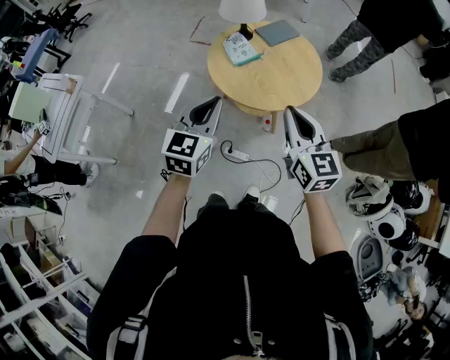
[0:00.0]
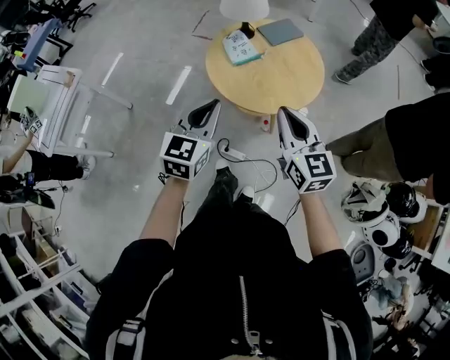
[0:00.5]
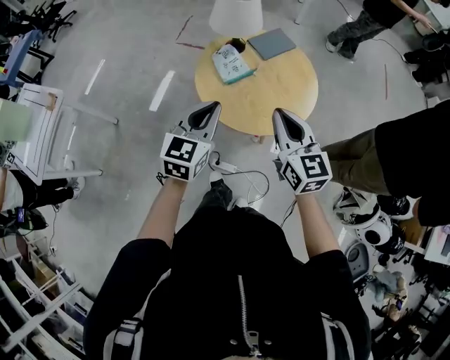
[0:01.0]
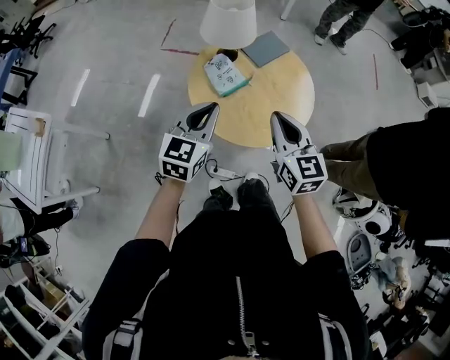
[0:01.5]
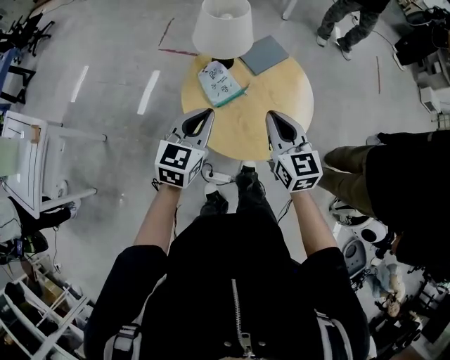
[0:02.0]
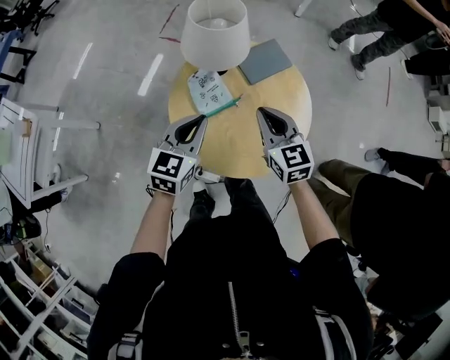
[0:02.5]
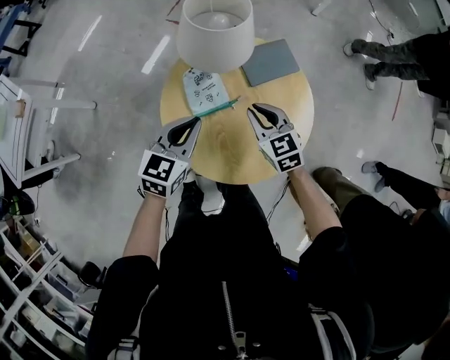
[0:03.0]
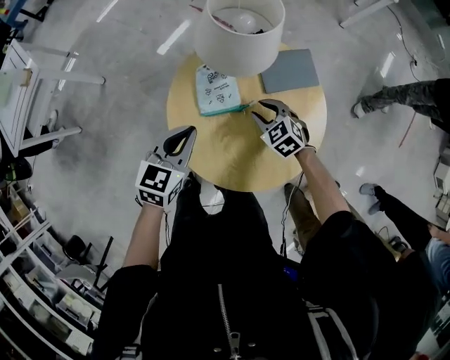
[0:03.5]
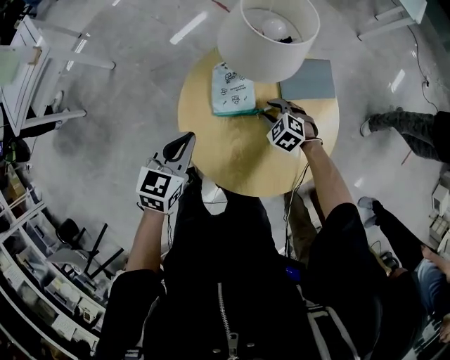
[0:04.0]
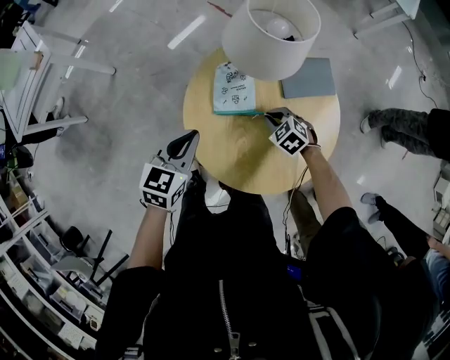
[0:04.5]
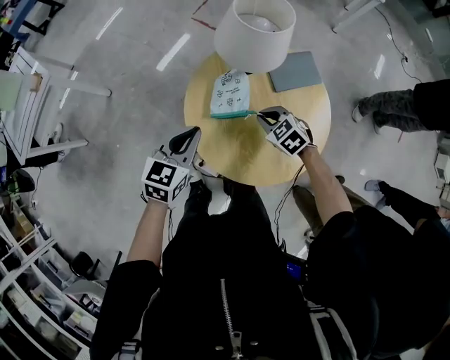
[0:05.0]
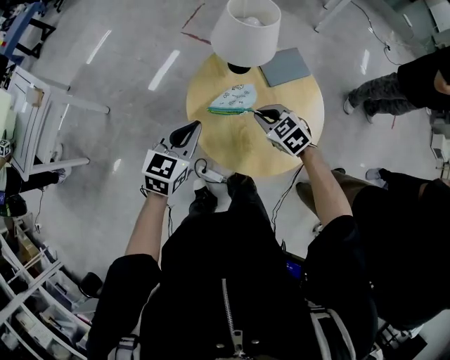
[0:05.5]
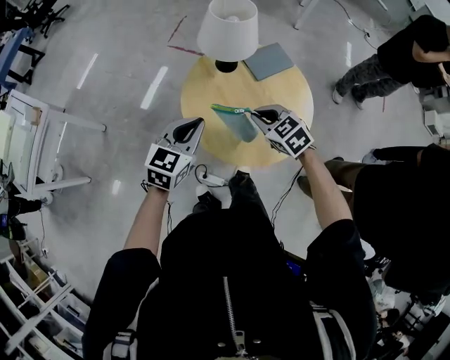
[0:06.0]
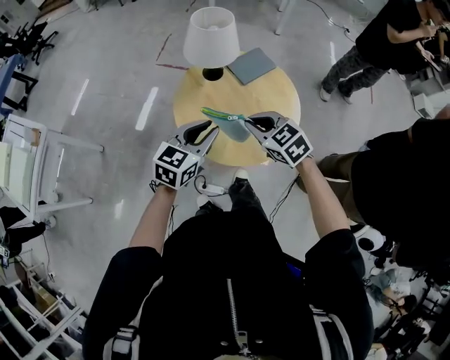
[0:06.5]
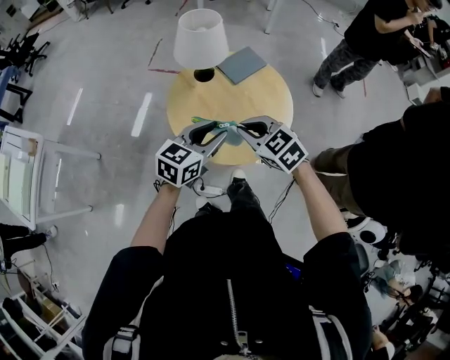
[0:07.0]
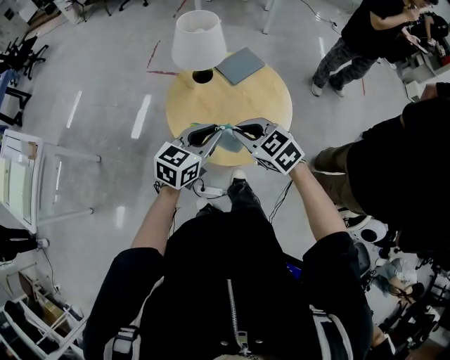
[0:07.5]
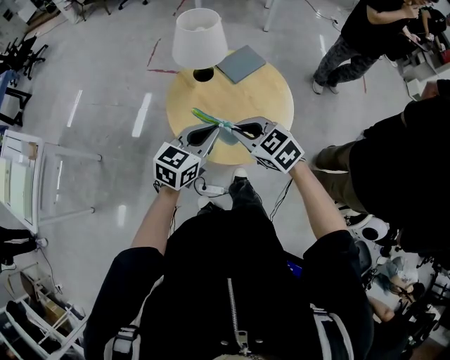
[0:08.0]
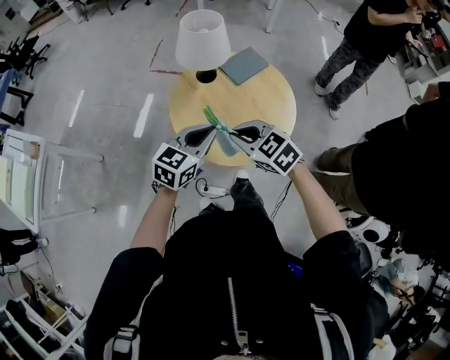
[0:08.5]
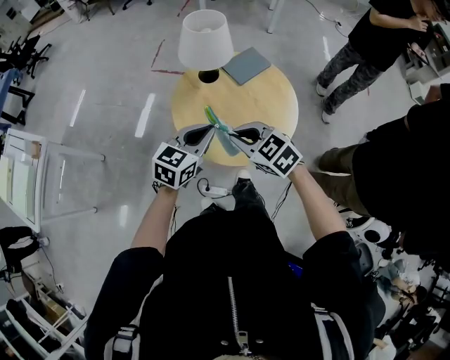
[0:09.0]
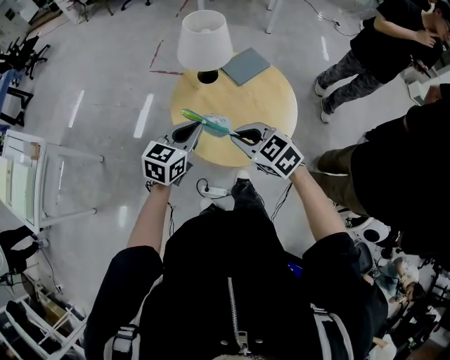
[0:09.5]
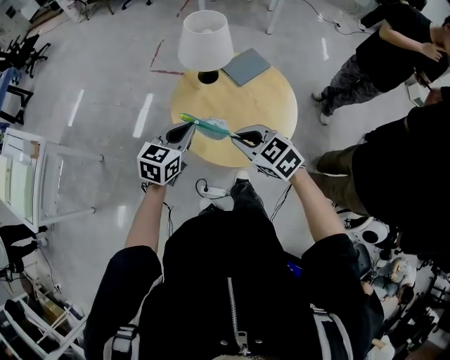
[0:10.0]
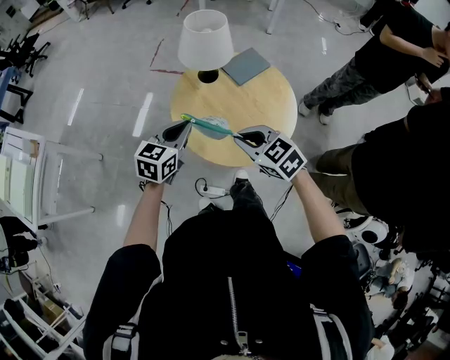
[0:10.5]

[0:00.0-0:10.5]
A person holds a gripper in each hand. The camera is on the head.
0:00.0 to 0:02.0: Both grippers move forward, roughly 25 cm.
0:02.0 to 0:04.0: The right gripper goes approximately 35 cm downward, angles its fingers downward, by about 50 degrees, and opens up, while the left gripper goes approximately 15 cm downward, and swivels approximately 30 degrees.
0:04.0 to 0:06.5: The left gripper heads upward, covering some 10 cm, turns by roughly 40 degrees, and opens up. Meanwhile the right gripper heads upward, covering some 30 cm, turns by some 40 degrees, and closes its fingers.
0:06.5 to 0:08.5: The right gripper shifts by some 5 cm. Meanwhile the left gripper closes its fingers.
0:08.5 to 0:10.5: The left gripper heads to the left, covering about 10 cm.

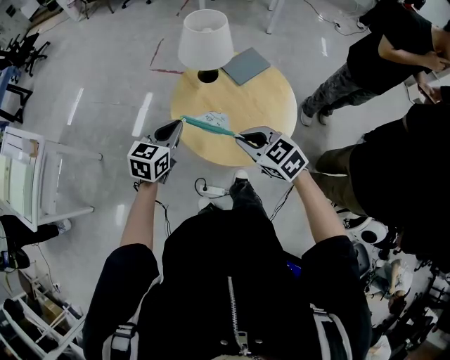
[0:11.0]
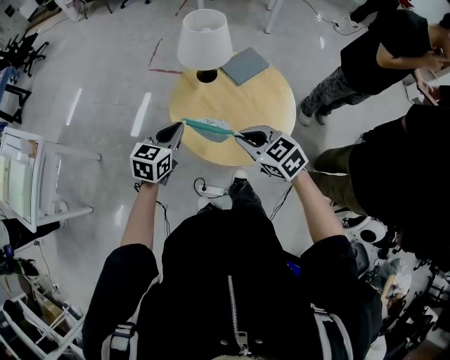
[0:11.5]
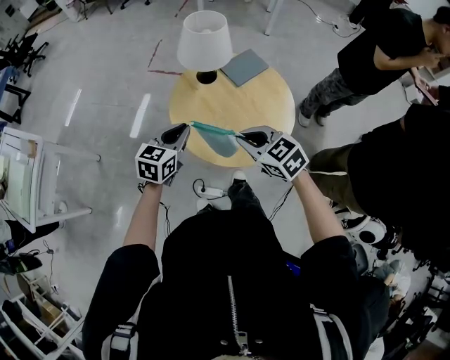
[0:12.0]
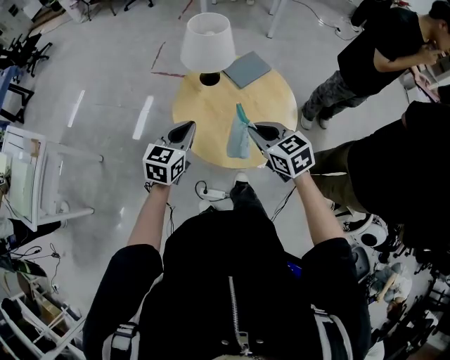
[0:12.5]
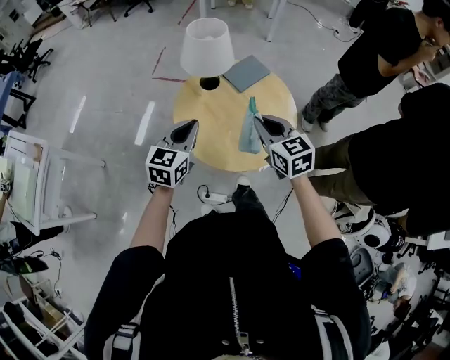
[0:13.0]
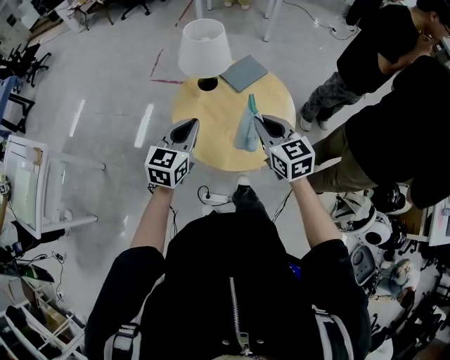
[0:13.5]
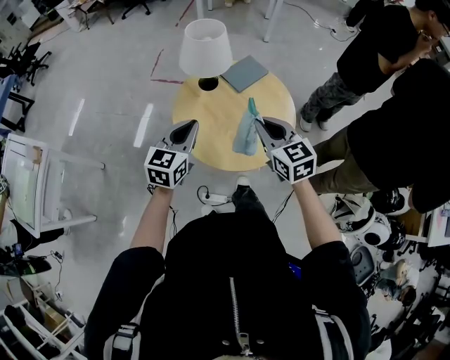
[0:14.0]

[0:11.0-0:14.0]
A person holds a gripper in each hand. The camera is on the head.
0:11.0 to 0:12.5: The grippers move only a little.
0:12.5 to 0:14.0: The right gripper changes place by approximately 5 cm.

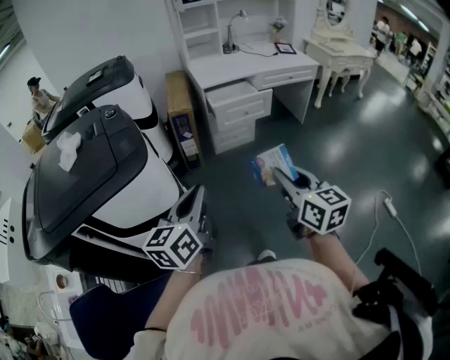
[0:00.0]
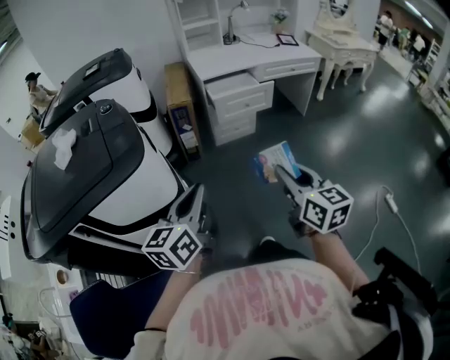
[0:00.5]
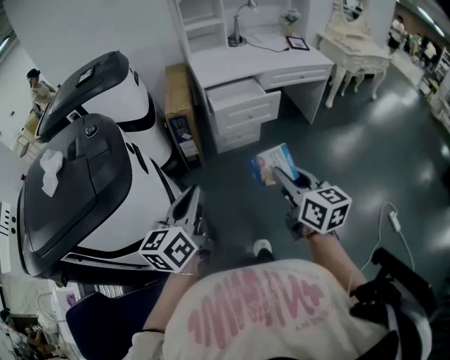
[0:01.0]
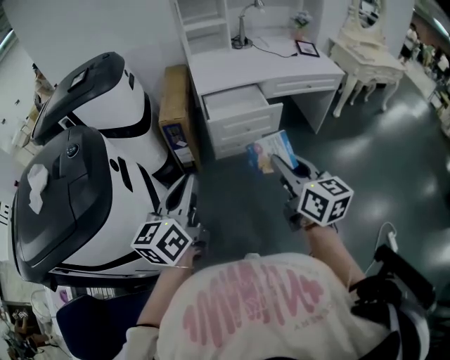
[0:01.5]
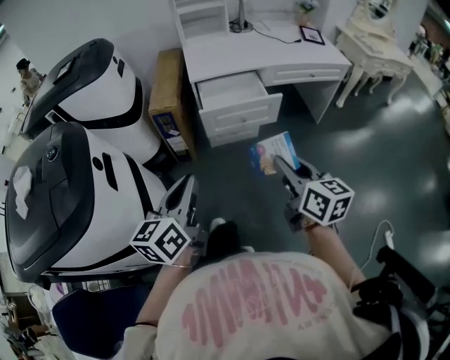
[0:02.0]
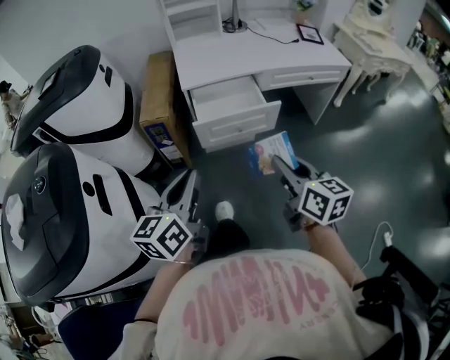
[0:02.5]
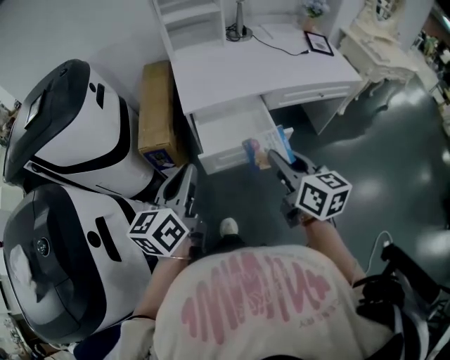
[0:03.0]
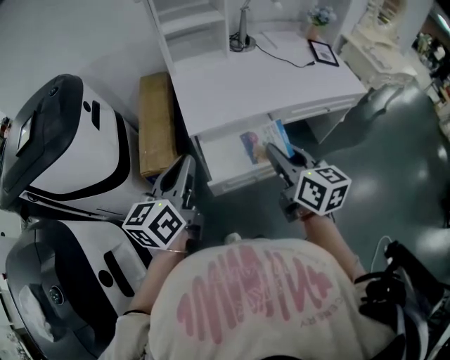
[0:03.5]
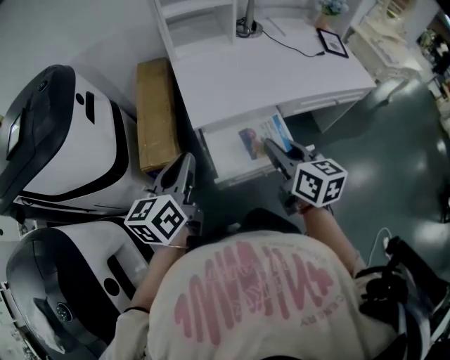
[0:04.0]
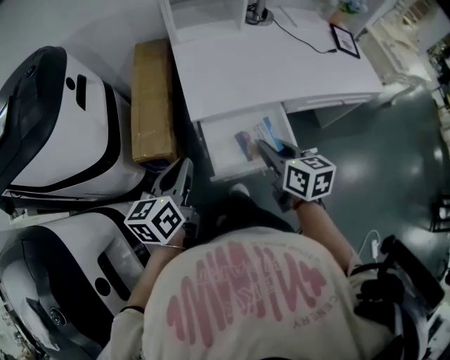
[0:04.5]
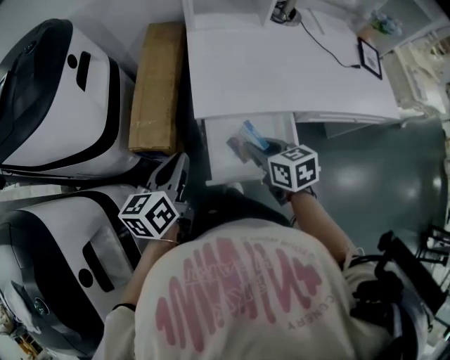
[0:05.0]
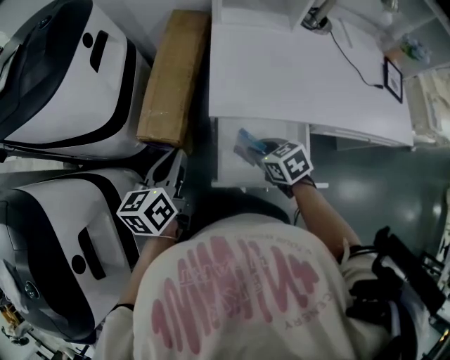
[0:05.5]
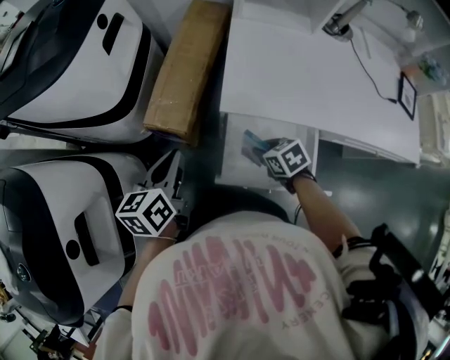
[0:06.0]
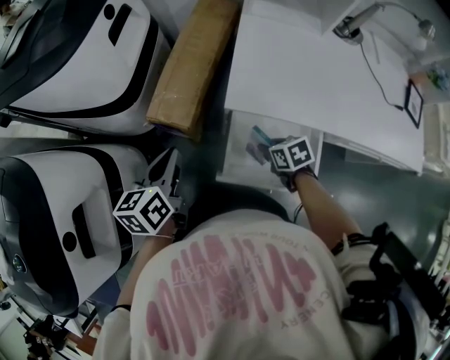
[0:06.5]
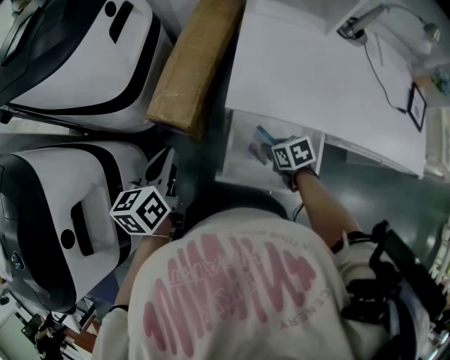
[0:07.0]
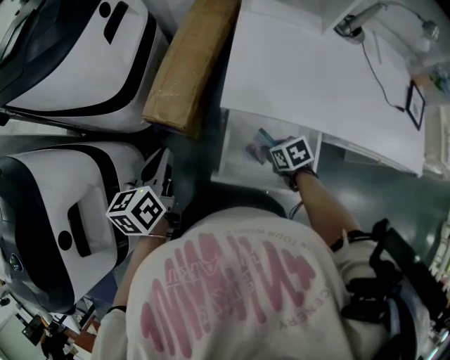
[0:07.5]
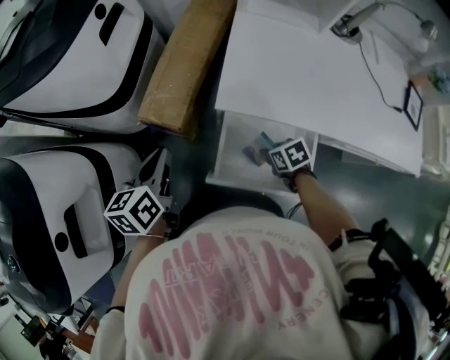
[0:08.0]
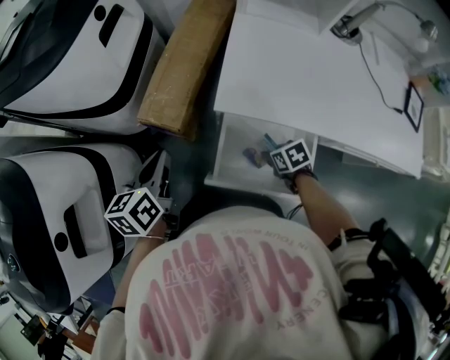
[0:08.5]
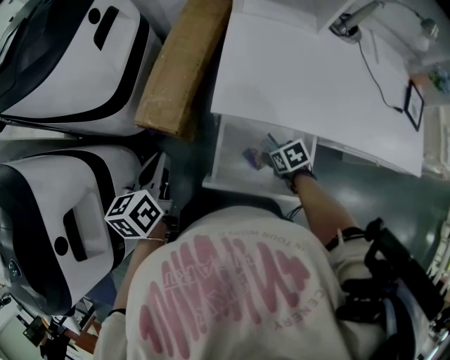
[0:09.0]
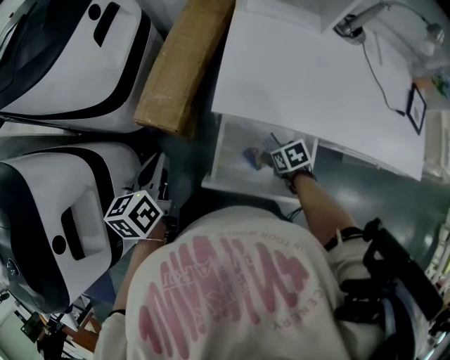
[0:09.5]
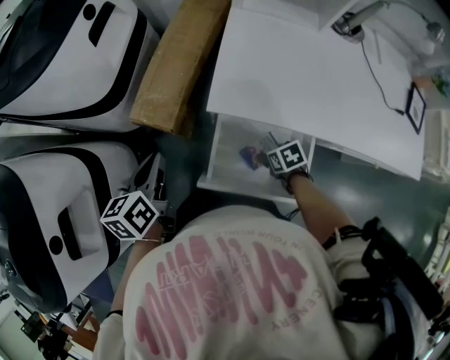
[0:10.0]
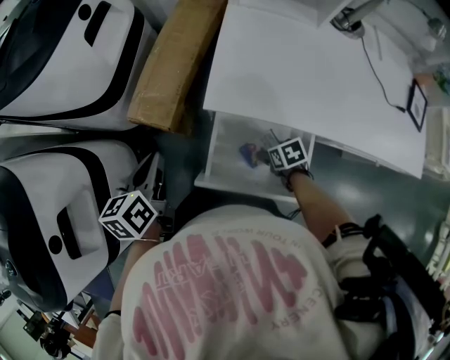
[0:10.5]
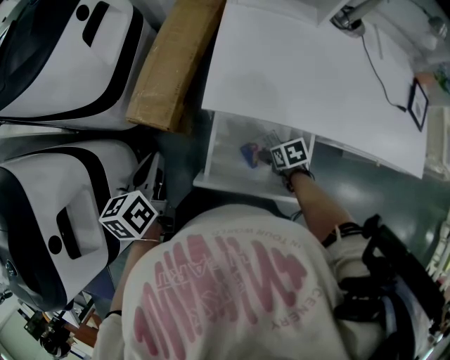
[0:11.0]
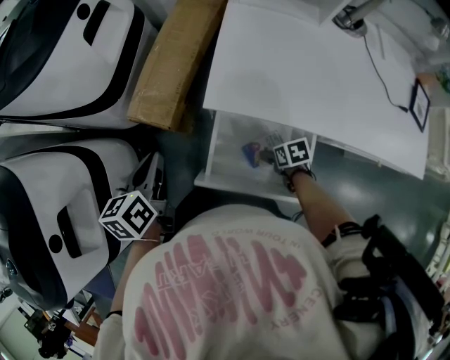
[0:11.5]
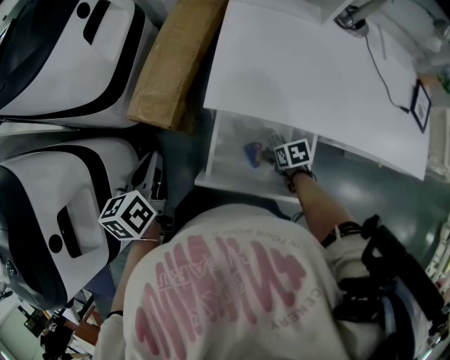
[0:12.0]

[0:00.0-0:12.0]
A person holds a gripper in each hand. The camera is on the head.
0:00.0 to 0:02.0: The two grippers go approximately 30 cm forward and to the right.
0:02.0 to 0:04.0: Both grippers move forward, roughly 40 cm.
0:04.0 to 0:06.0: The right gripper is displaced downward by roughly 25 cm, and tilts its fingers approximately 40 degrees downward, while the left gripper heads downward, covering about 10 cm, and swivels roughly 30 degrees.
0:06.0 to 0:08.0: The right gripper shifts some 5 cm downward.
0:08.0 to 0:10.0: The right gripper opens.
0:10.0 to 0:12.0: There are only small adjustments of the grippers.

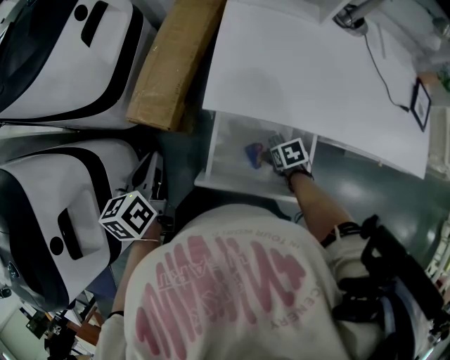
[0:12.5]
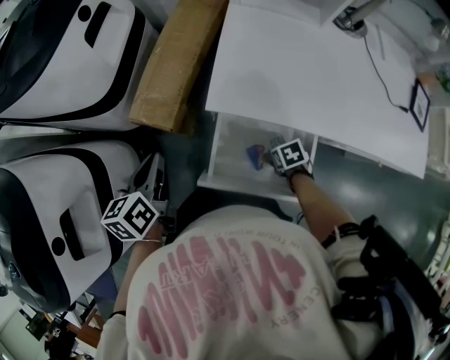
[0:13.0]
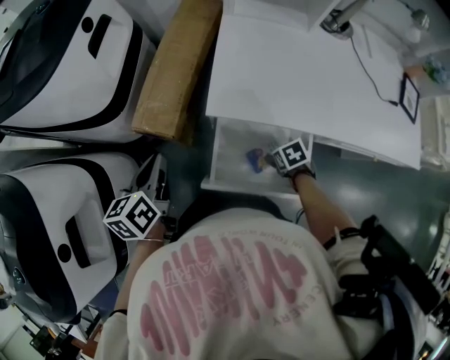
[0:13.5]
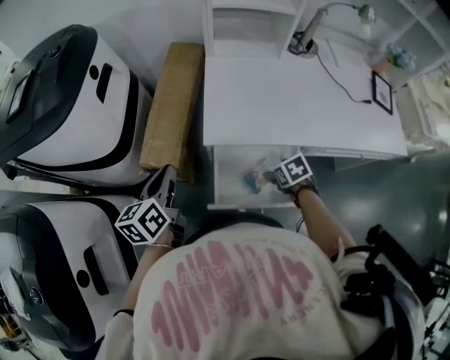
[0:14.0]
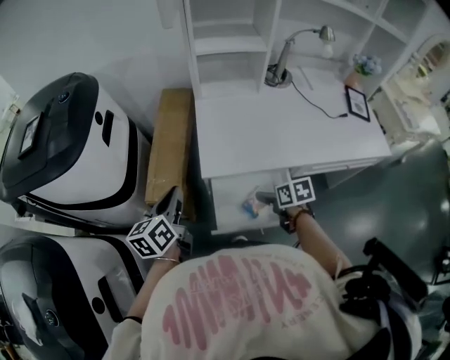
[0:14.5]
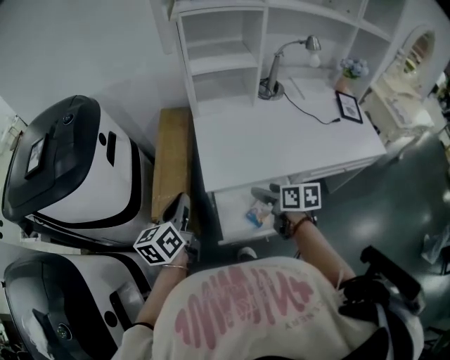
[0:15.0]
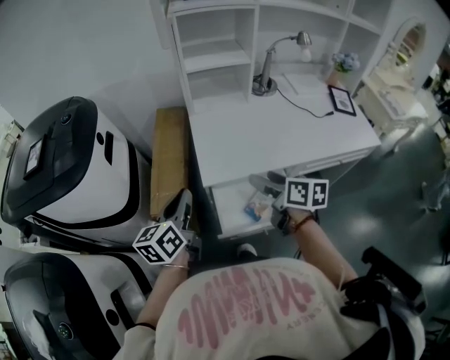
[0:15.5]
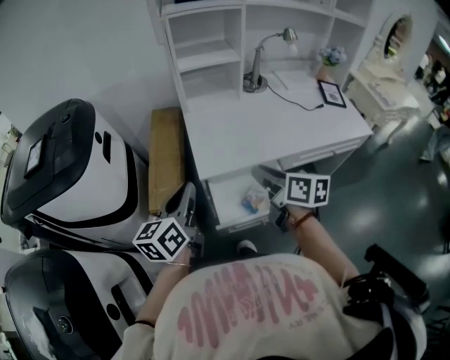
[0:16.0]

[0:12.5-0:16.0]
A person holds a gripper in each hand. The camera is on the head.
0:12.5 to 0:14.5: The left gripper is displaced upward by some 10 cm, and swivels about 20 degrees; the right gripper moves upward, some 20 cm, and changes its angle by about 30 degrees.
0:14.5 to 0:16.0: The left gripper heads upward, covering roughly 10 cm. Meanwhile the right gripper moves upward, roughly 20 cm, tips its fingers upward by roughly 30 degrees, and closes its fingers.
